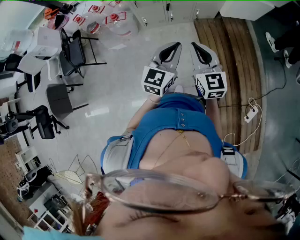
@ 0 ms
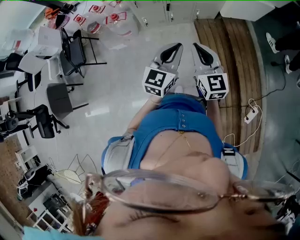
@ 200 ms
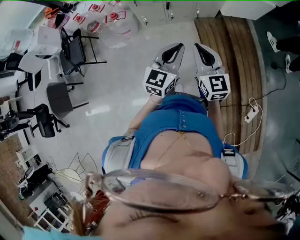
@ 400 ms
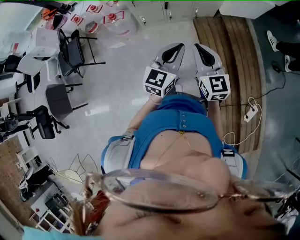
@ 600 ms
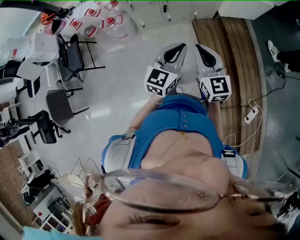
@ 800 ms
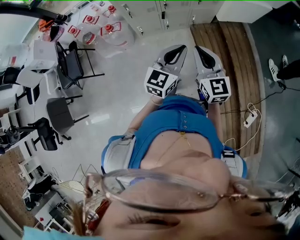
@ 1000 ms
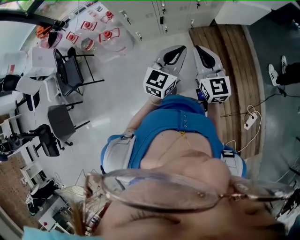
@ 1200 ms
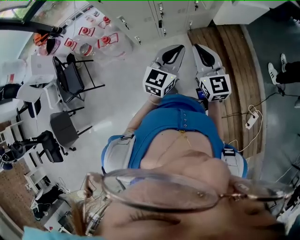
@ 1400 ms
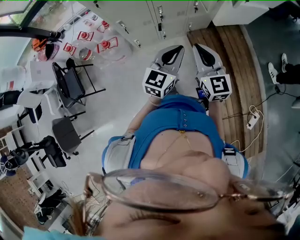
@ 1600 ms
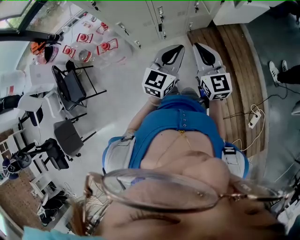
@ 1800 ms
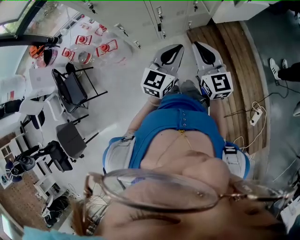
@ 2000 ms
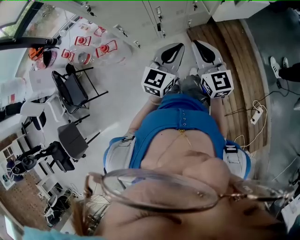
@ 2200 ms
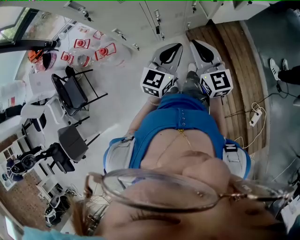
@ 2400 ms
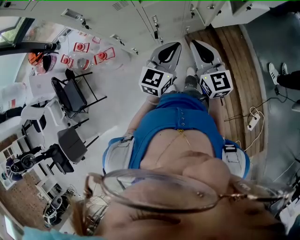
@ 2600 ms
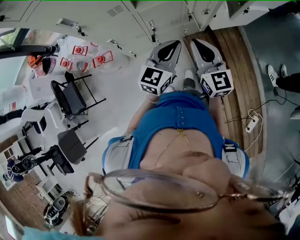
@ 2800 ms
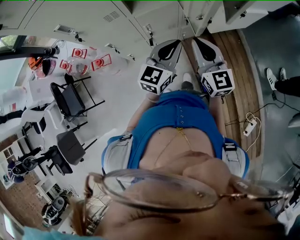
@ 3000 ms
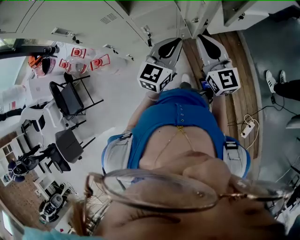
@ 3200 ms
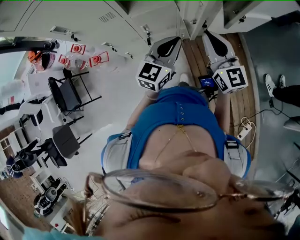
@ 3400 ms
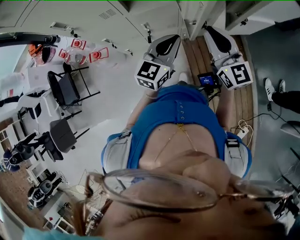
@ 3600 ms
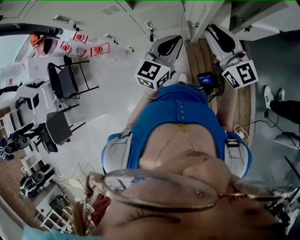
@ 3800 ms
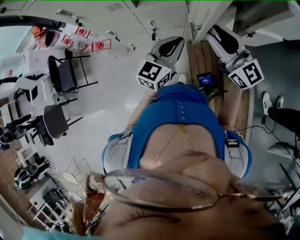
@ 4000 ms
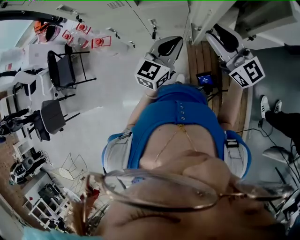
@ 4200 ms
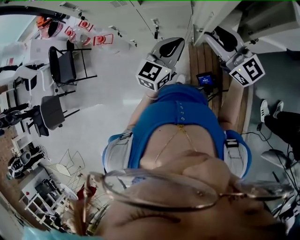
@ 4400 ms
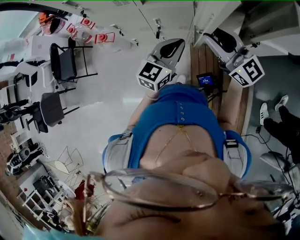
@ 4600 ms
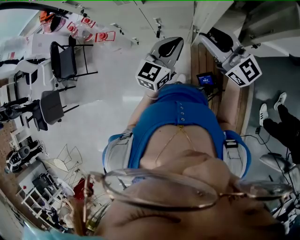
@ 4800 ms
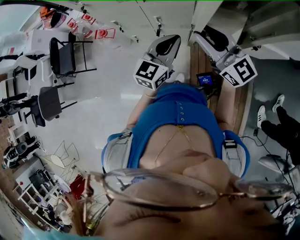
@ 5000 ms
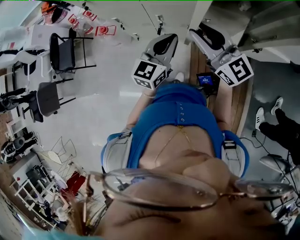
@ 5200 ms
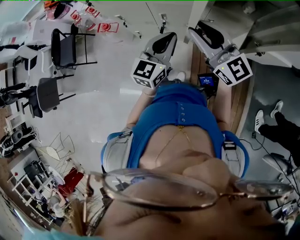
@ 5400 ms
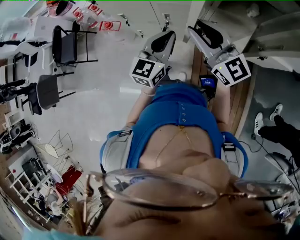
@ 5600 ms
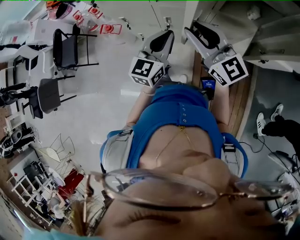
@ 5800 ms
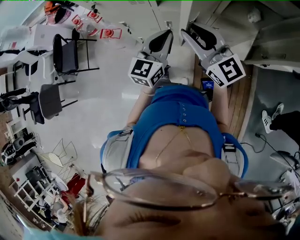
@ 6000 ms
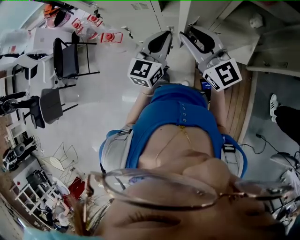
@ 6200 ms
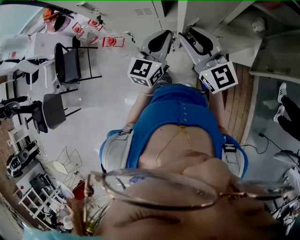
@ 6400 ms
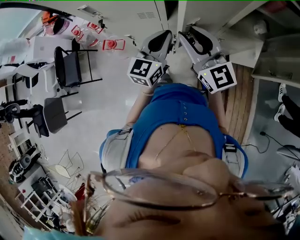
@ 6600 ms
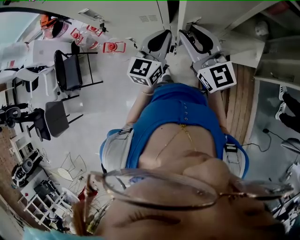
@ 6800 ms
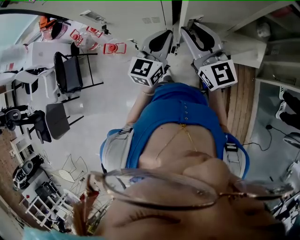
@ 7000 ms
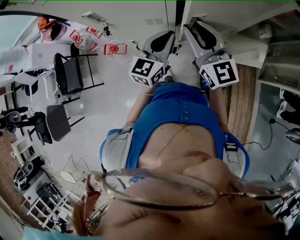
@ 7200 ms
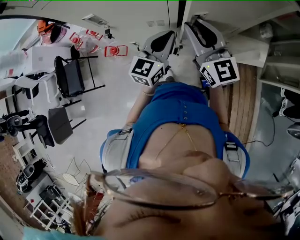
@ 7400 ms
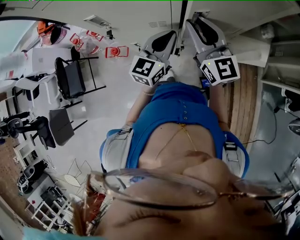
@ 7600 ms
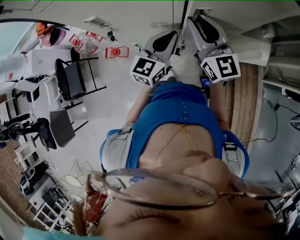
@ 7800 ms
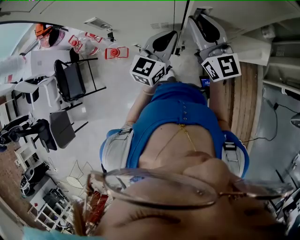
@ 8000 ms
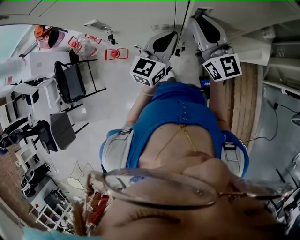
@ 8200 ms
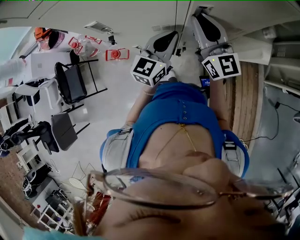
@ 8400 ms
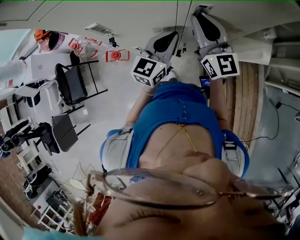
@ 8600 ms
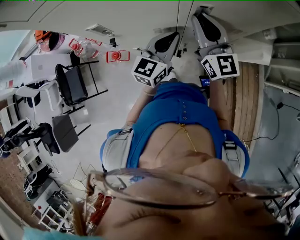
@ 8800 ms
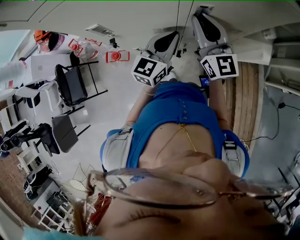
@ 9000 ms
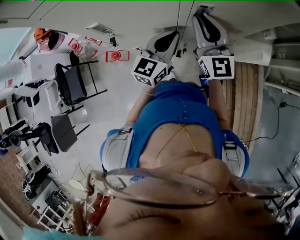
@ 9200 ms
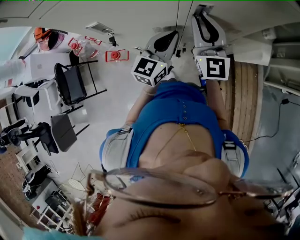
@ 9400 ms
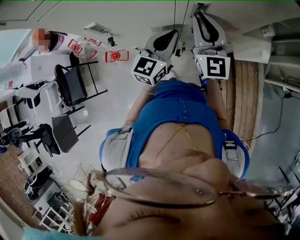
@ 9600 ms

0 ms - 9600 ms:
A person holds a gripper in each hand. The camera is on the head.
0 ms - 1600 ms: The two grippers go approximately 20 cm forward.
1600 ms - 3200 ms: The right gripper moves forward and to the right, about 25 cm. The left gripper shifts approximately 25 cm forward.
3200 ms - 4800 ms: The right gripper shifts by approximately 5 cm, rotates approximately 40 degrees, and opens its fingers.
4800 ms - 6400 ms: The left gripper goes approximately 15 cm forward and to the left. Meanwhile the right gripper travels to the left and forward by about 15 cm.
6400 ms - 8000 ms: The grippers both shift forward and to the left by roughly 15 cm.
8000 ms - 9600 ms: The right gripper swivels approximately 20 degrees.

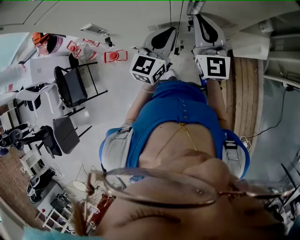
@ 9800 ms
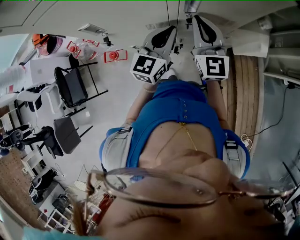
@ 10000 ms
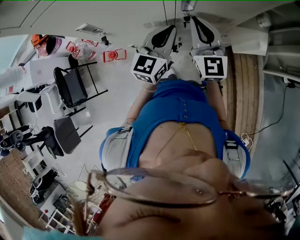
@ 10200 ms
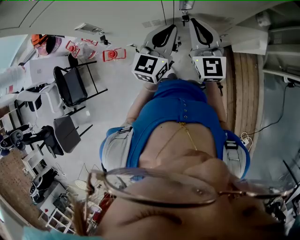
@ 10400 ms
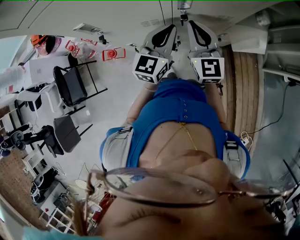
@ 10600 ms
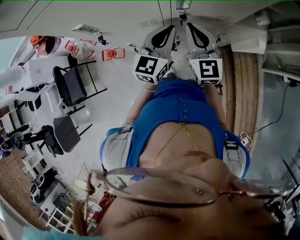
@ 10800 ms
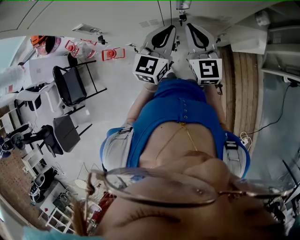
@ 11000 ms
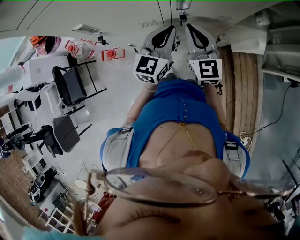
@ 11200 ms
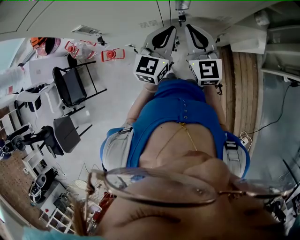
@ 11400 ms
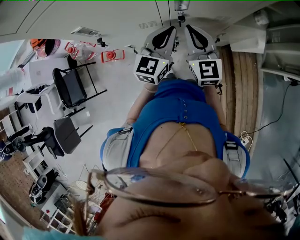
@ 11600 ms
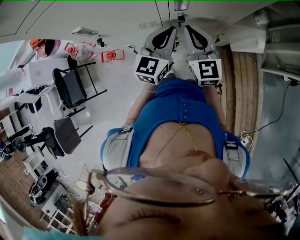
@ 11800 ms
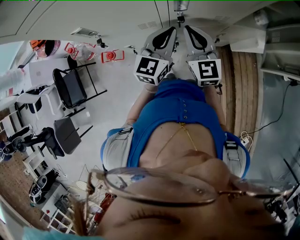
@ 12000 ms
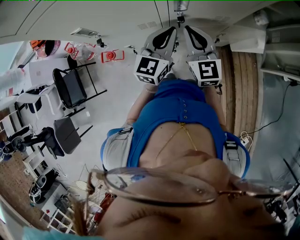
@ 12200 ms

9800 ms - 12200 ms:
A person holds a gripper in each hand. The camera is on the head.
9800 ms - 11000 ms: The right gripper shifts roughly 5 cm downward.
11000 ms - 12200 ms: The two grippers keep their place.

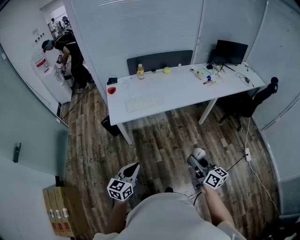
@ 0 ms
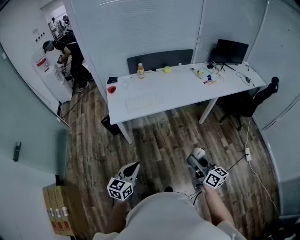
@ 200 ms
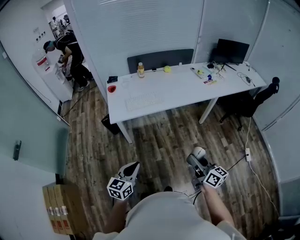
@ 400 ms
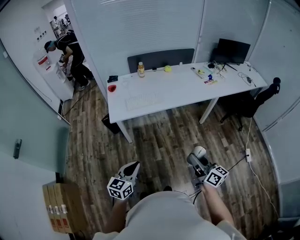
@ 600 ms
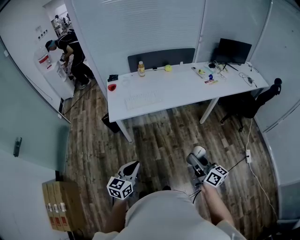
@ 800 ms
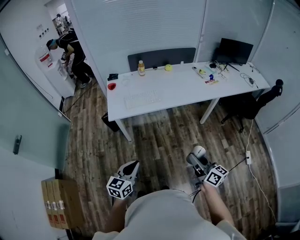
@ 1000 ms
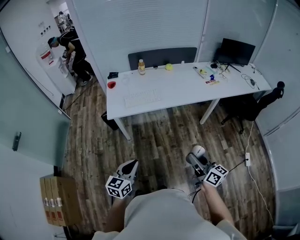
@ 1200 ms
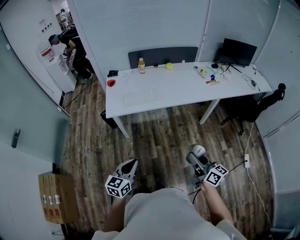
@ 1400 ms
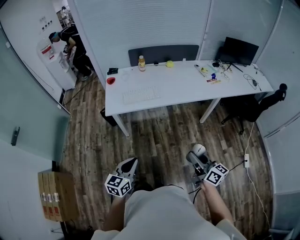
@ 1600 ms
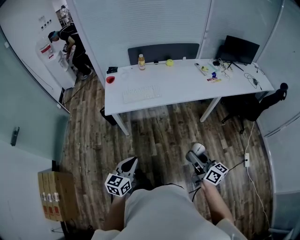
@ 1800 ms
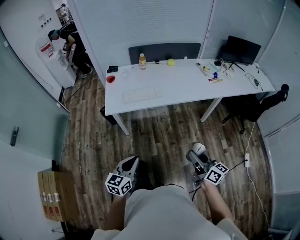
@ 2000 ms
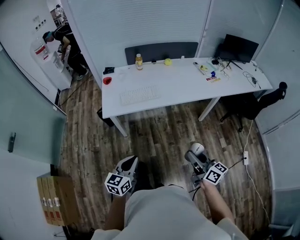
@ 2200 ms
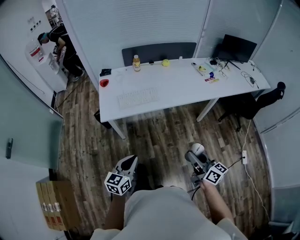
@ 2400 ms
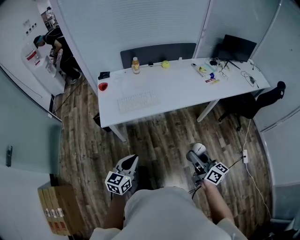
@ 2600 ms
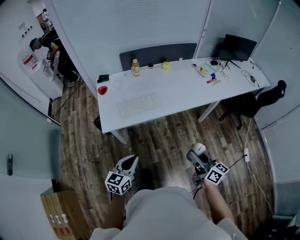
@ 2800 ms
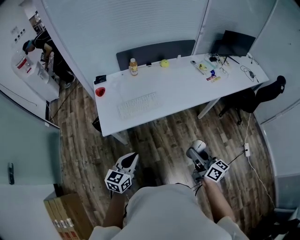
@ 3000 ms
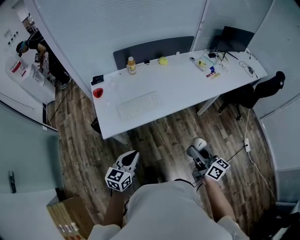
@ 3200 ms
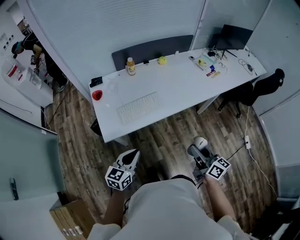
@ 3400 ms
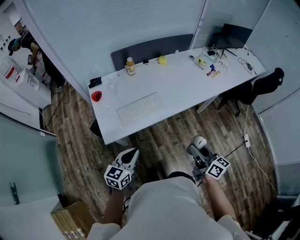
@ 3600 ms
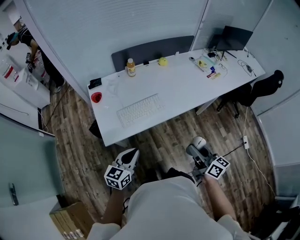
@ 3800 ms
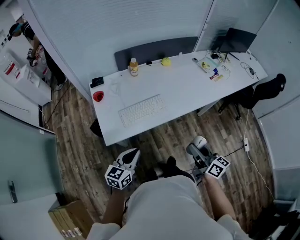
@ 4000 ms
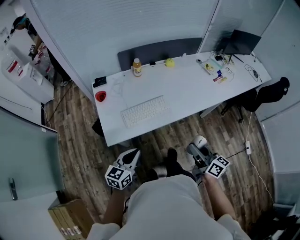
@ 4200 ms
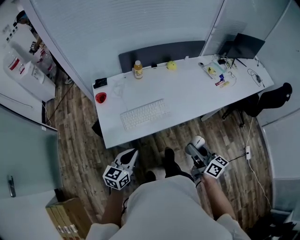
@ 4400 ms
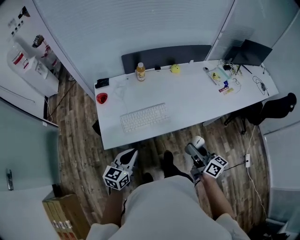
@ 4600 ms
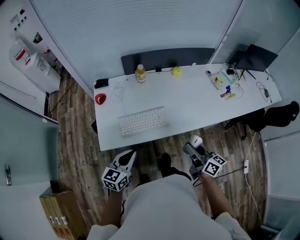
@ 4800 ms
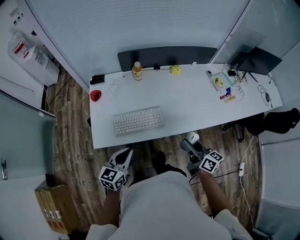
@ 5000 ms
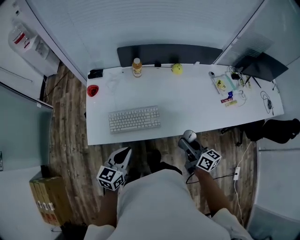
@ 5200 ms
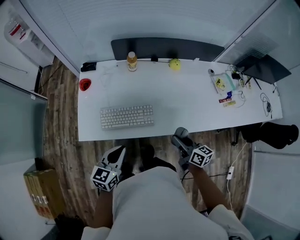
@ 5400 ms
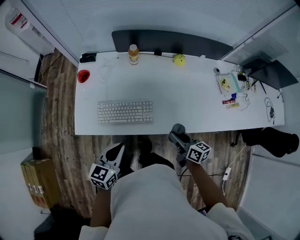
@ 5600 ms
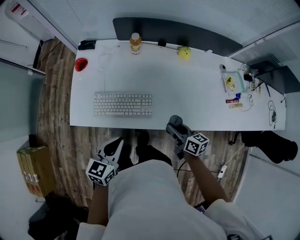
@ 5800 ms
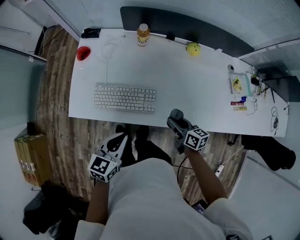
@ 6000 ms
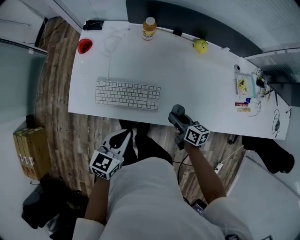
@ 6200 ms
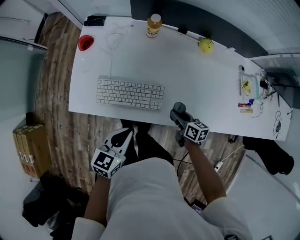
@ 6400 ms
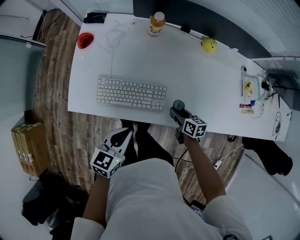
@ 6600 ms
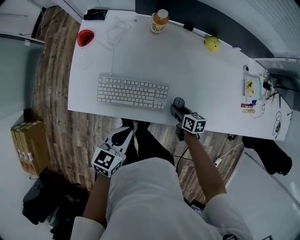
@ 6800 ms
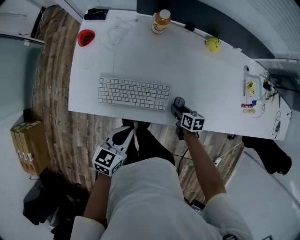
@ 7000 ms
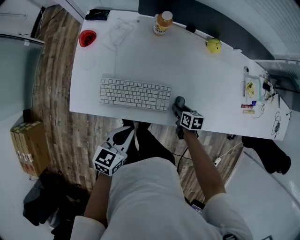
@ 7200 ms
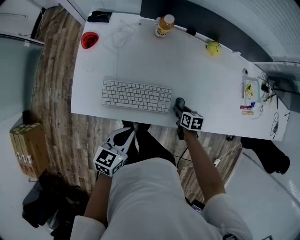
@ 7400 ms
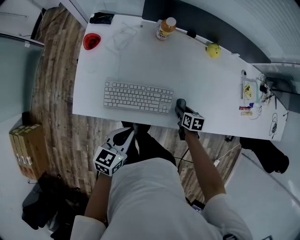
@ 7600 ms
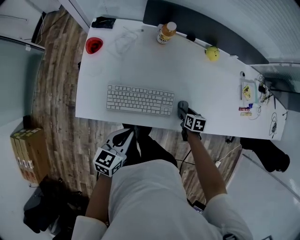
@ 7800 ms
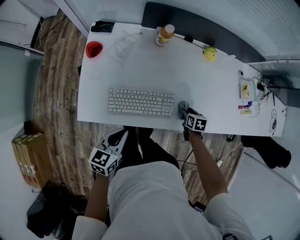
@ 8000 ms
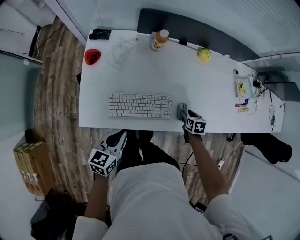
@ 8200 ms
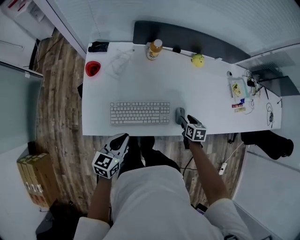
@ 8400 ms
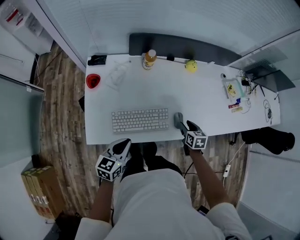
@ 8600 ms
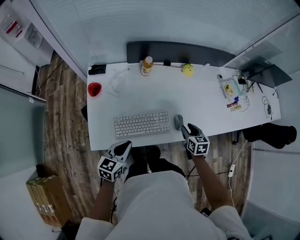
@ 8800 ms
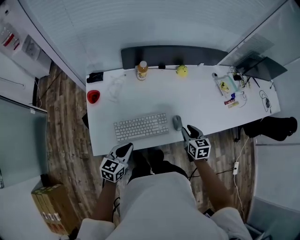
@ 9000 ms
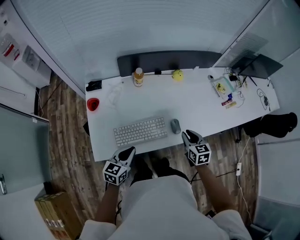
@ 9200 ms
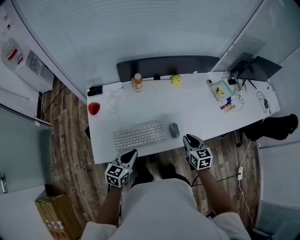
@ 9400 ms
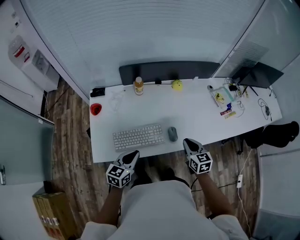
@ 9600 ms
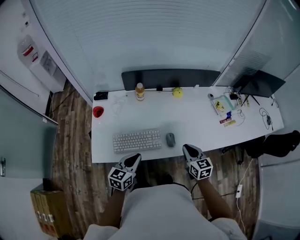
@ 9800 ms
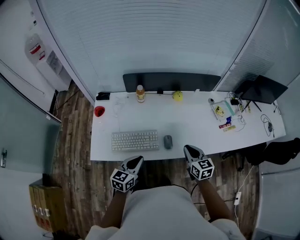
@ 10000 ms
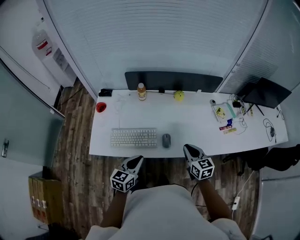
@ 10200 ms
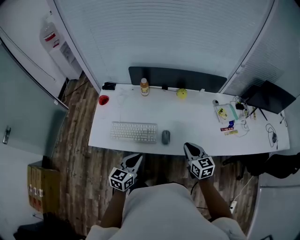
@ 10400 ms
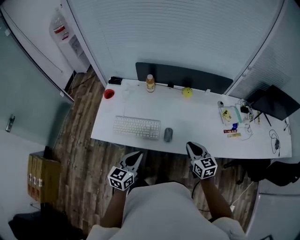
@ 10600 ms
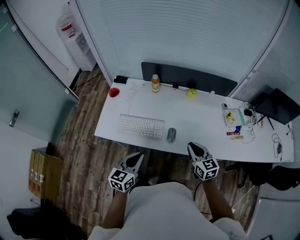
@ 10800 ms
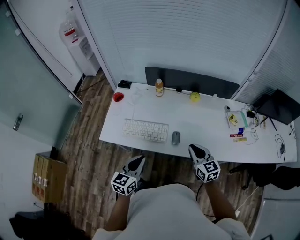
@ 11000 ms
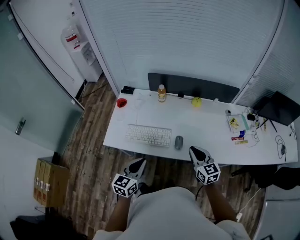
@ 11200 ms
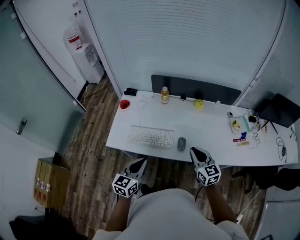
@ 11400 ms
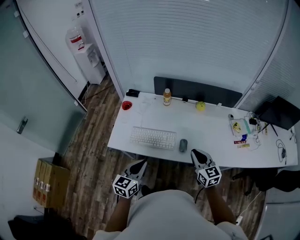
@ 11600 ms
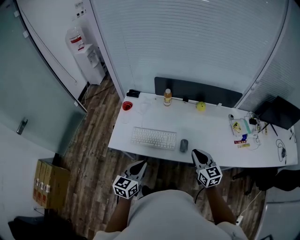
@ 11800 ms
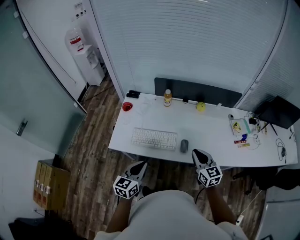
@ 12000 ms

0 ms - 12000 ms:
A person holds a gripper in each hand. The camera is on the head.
0 ms - 1600 ms: Both grippers travel together to the right, some 10 cm.
1600 ms - 3000 ms: The right gripper moves forward and to the left, roughly 20 cm. The left gripper heads forward, covering about 20 cm.
3000 ms - 4400 ms: The two grippers go roughly 15 cm forward and to the left.
4400 ms - 6000 ms: The right gripper moves roughly 35 cm, and changes its angle by about 40 degrees; the left gripper ends up approximately 20 cm from where it was, and turns by approximately 20 degrees.
6000 ms - 7600 ms: The left gripper is displaced downward and to the left by some 10 cm, while the right gripper moves downward, approximately 15 cm, and tilts its fingers approximately 40 degrees downward.
7600 ms - 9000 ms: The left gripper travels to the left by approximately 5 cm. Meanwhile the right gripper is displaced upward by some 20 cm, and turns by about 30 degrees.
9000 ms - 10400 ms: The right gripper moves to the right and upward, roughly 15 cm, changes its angle by about 30 degrees, and closes. The left gripper moves to the right, roughly 20 cm.
10400 ms - 12000 ms: The right gripper heads to the left and upward, covering about 10 cm, while the left gripper goes about 10 cm to the left.
